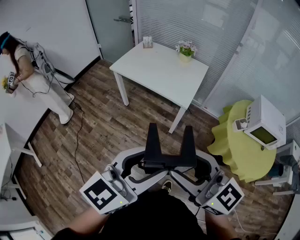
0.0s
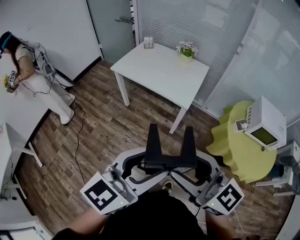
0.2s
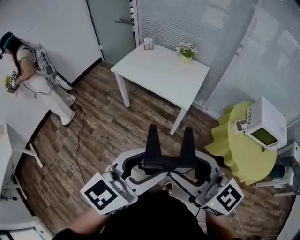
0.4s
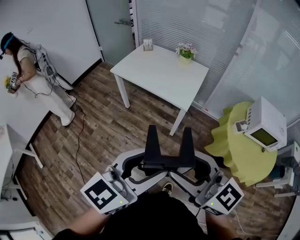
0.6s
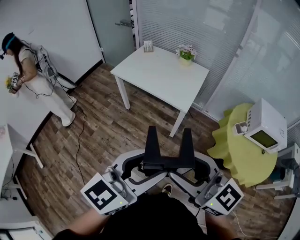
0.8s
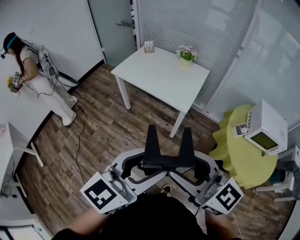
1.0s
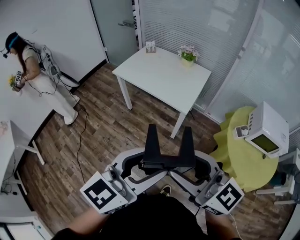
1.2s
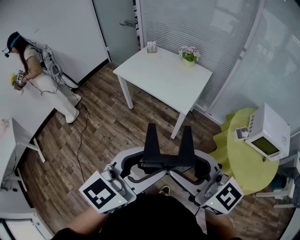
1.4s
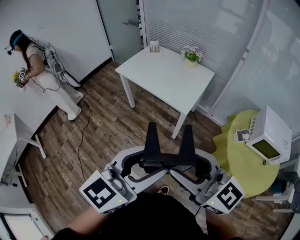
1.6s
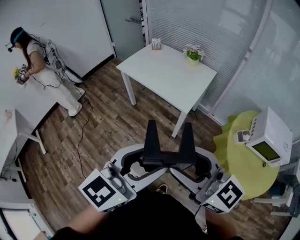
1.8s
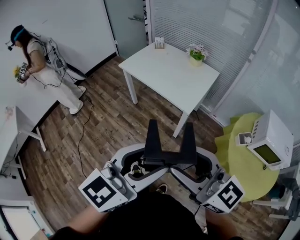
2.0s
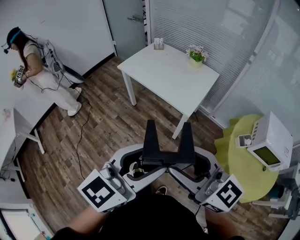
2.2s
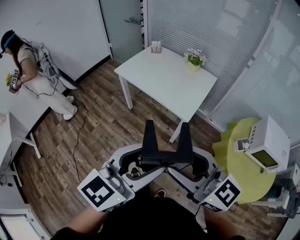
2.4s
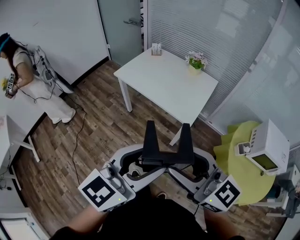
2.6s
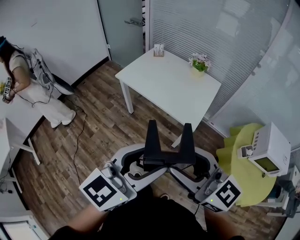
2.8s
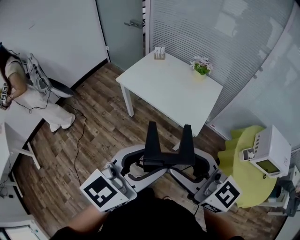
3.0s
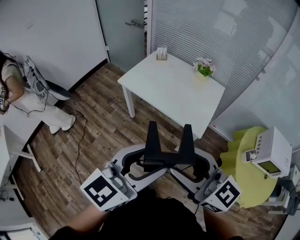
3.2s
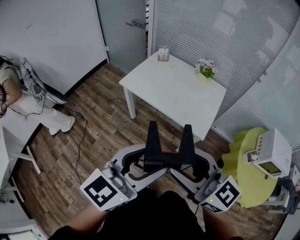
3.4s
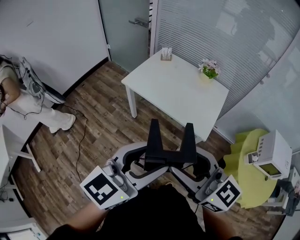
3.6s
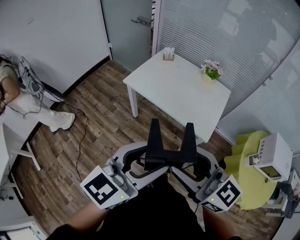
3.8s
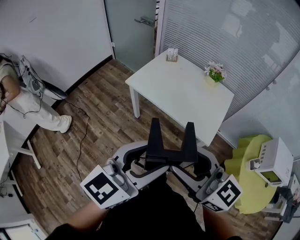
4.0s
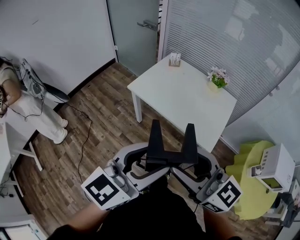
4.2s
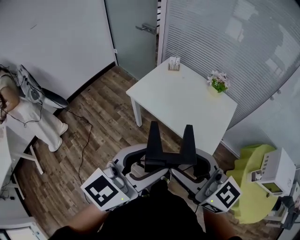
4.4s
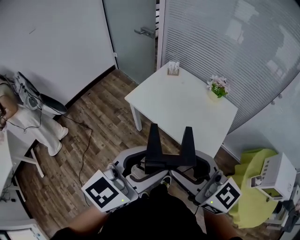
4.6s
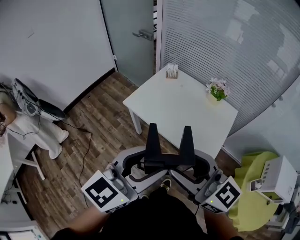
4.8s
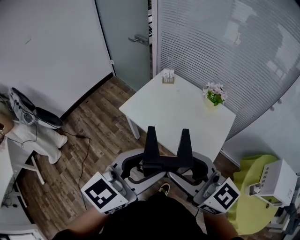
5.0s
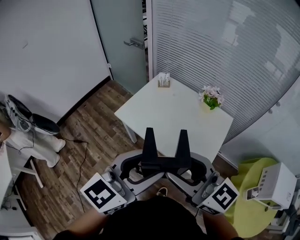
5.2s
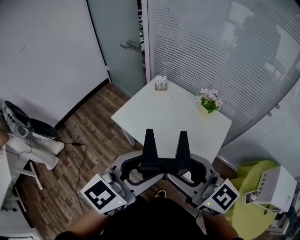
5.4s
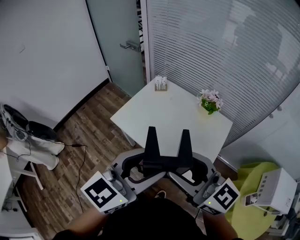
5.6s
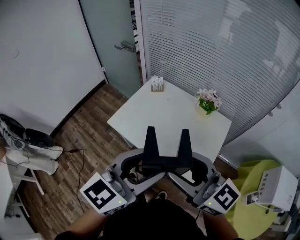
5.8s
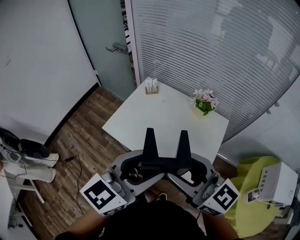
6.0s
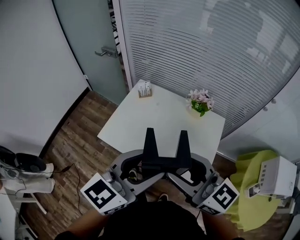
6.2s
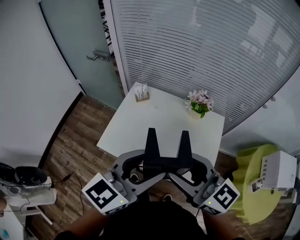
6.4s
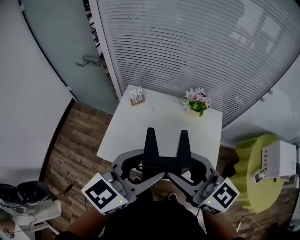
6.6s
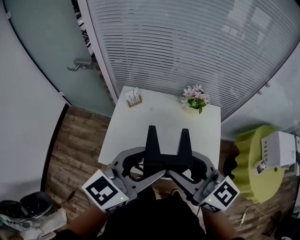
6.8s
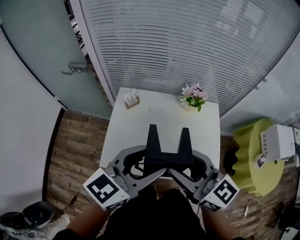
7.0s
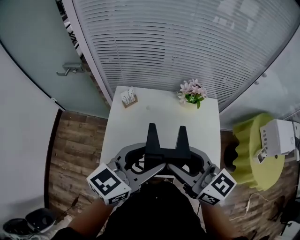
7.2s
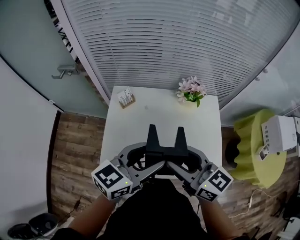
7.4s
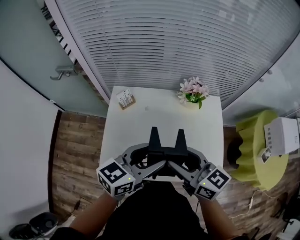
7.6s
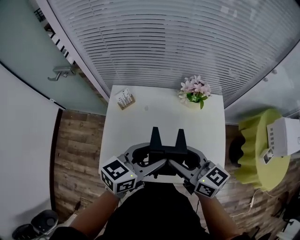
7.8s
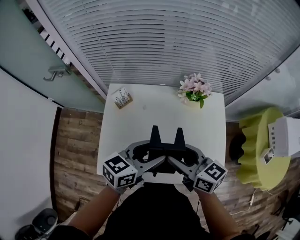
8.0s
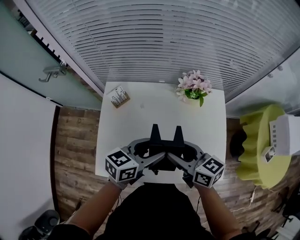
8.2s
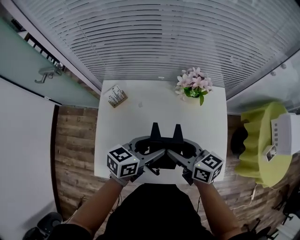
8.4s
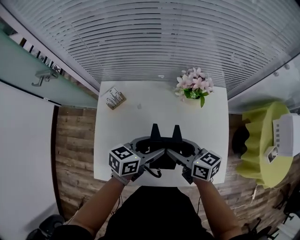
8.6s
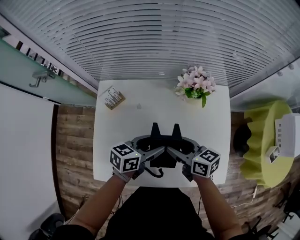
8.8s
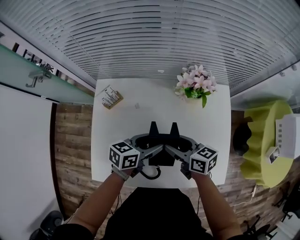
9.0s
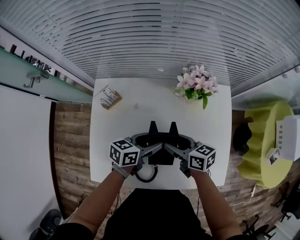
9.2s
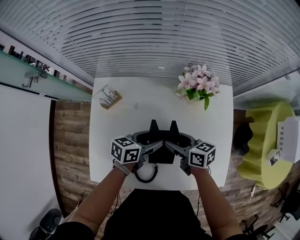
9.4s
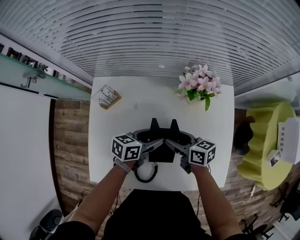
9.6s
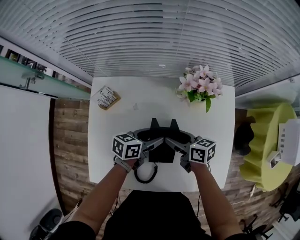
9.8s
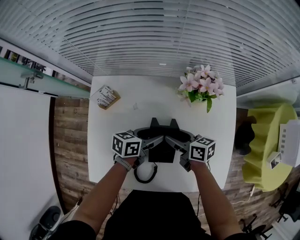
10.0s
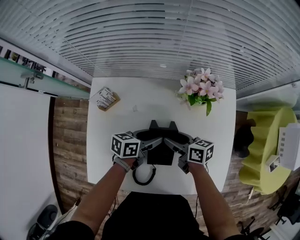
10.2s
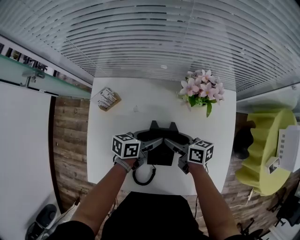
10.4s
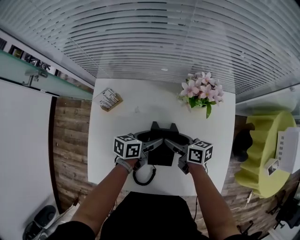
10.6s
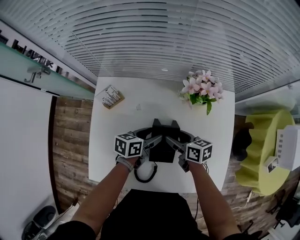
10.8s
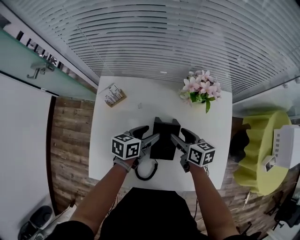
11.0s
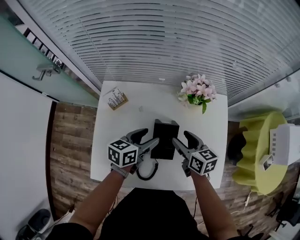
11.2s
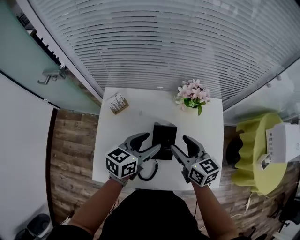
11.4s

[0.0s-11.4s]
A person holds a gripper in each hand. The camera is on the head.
0.0s to 1.4s: Both grippers travel together to the right, some 5 cm.
1.4s to 2.8s: Both grippers travel together forward and to the left, some 15 cm.
2.8s to 4.2s: Both grippers travel together forward and to the left, approximately 20 cm.
4.2s to 5.6s: The grippers both shift forward and to the right by some 25 cm.
5.6s to 7.2s: The right gripper moves roughly 25 cm, and rotates about 40 degrees. Meanwhile the left gripper moves some 30 cm, and changes its angle by about 40 degrees.
7.2s to 8.6s: The two grippers go some 30 cm downward and forward. The right gripper changes its angle by some 30 degrees, while the left gripper rotates roughly 30 degrees.
8.6s to 10.0s: The two grippers go some 15 cm downward and forward.
10.0s to 11.4s: Both grippers move upward, some 20 cm. The right gripper turns by approximately 30 degrees. Meanwhile the left gripper changes its angle by some 30 degrees.

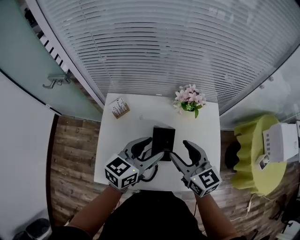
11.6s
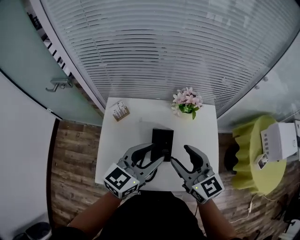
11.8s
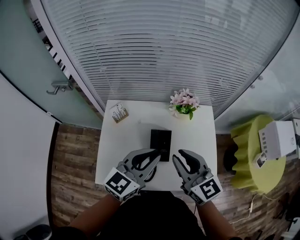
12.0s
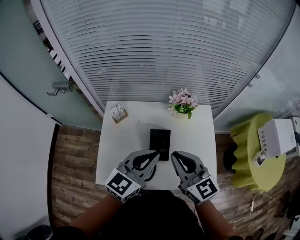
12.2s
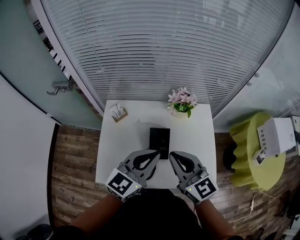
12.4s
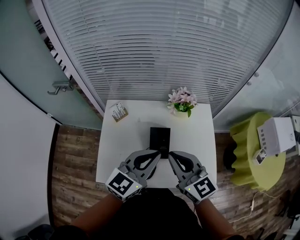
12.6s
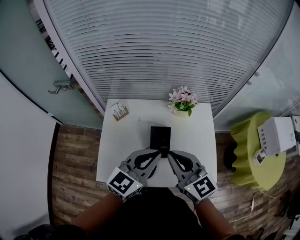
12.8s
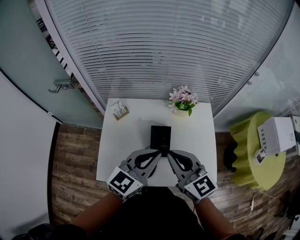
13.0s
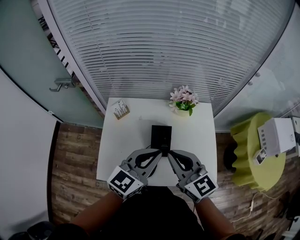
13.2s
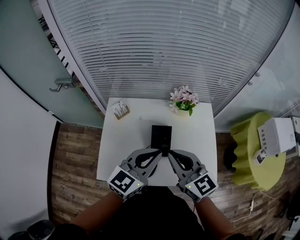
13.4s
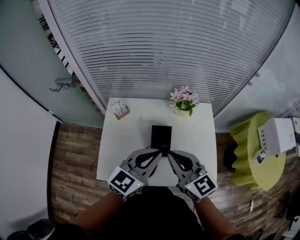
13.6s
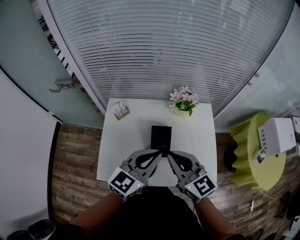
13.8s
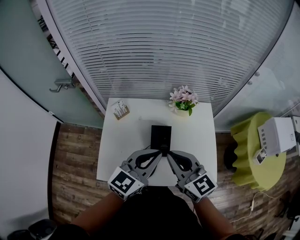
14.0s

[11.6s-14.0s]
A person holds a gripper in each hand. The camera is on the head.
11.6s to 12.8s: Both grippers travel together backward and upward, about 10 cm. The right gripper closes its fingers. The left gripper closes.
12.8s to 14.0s: Both grippers stay put.

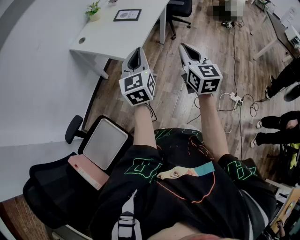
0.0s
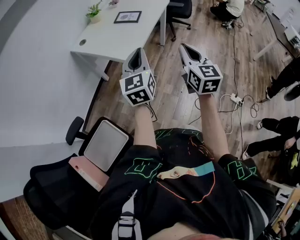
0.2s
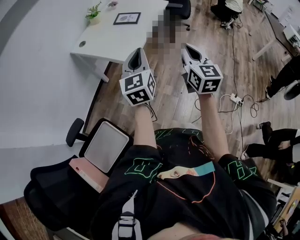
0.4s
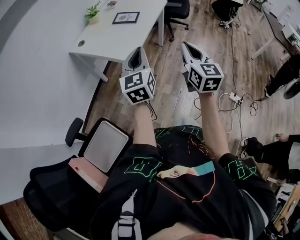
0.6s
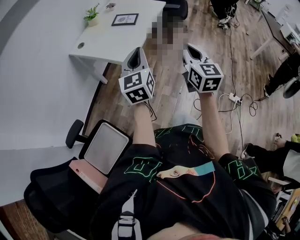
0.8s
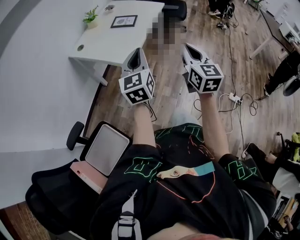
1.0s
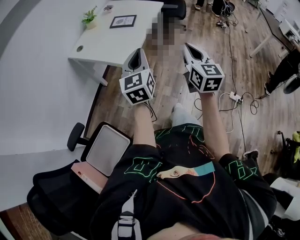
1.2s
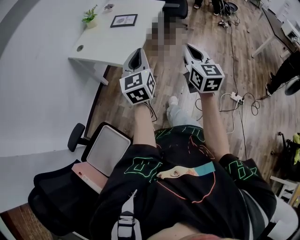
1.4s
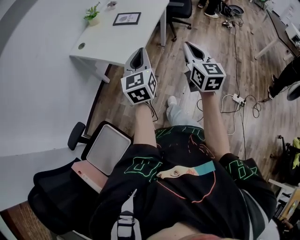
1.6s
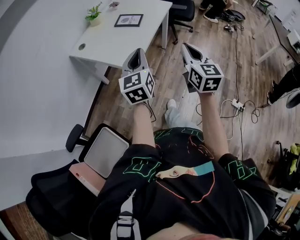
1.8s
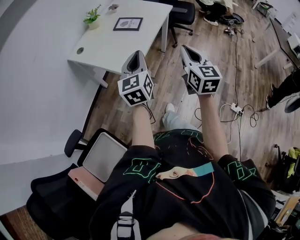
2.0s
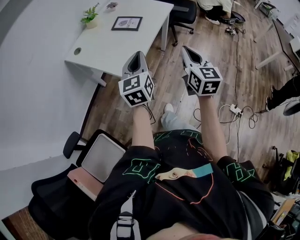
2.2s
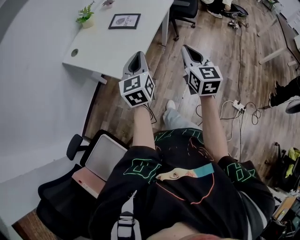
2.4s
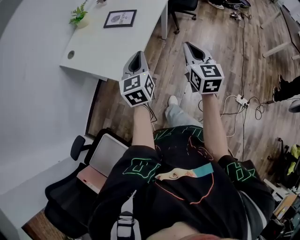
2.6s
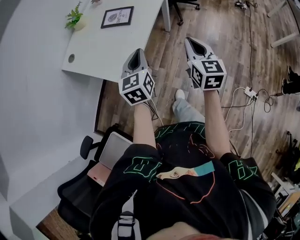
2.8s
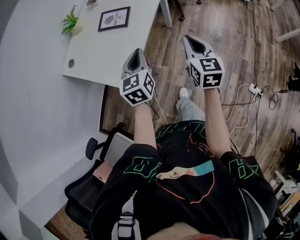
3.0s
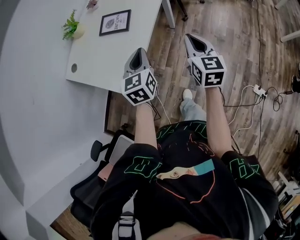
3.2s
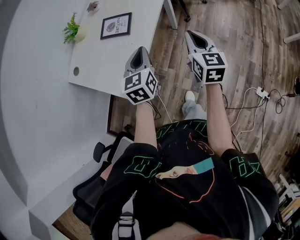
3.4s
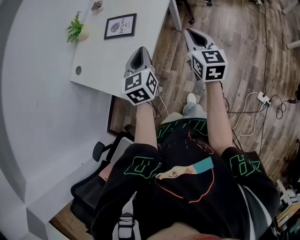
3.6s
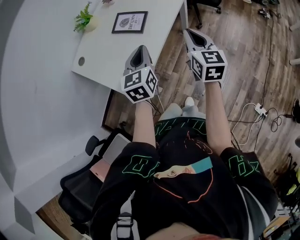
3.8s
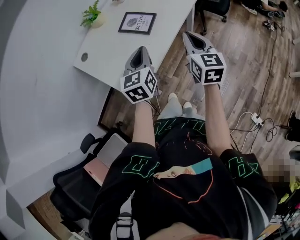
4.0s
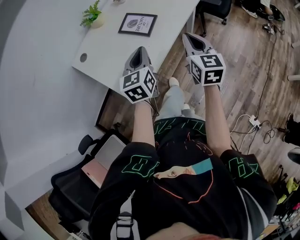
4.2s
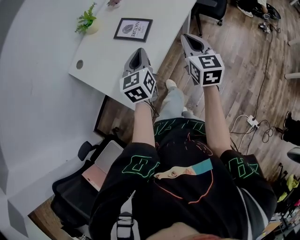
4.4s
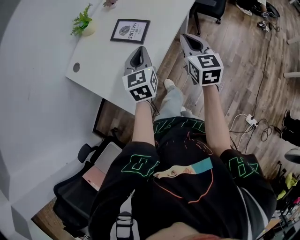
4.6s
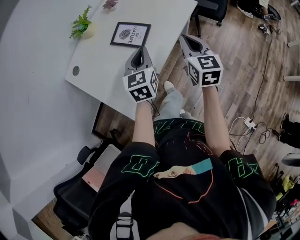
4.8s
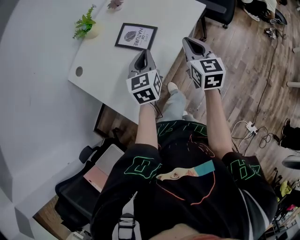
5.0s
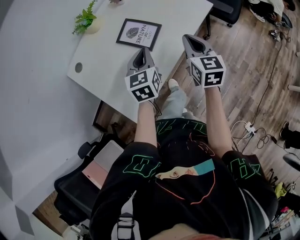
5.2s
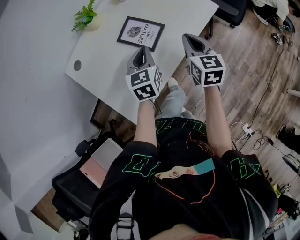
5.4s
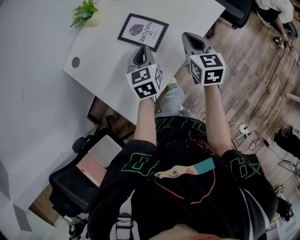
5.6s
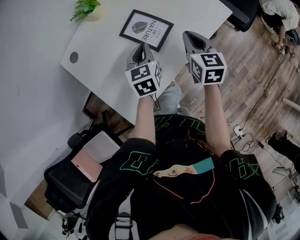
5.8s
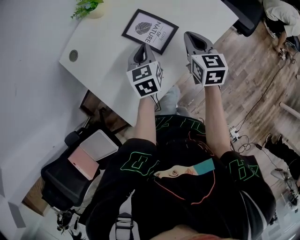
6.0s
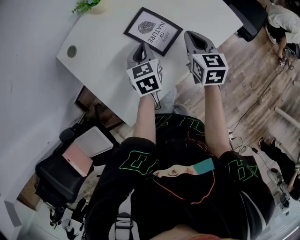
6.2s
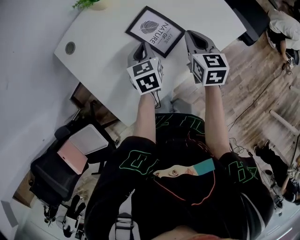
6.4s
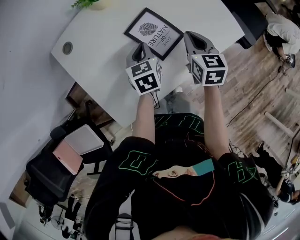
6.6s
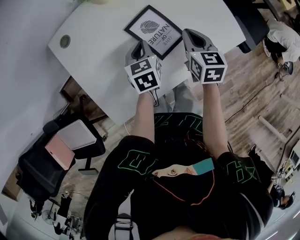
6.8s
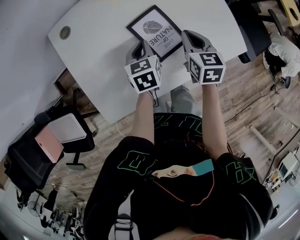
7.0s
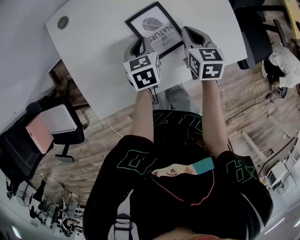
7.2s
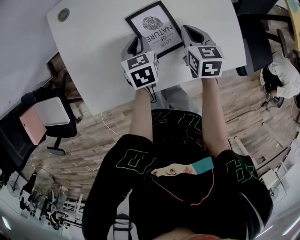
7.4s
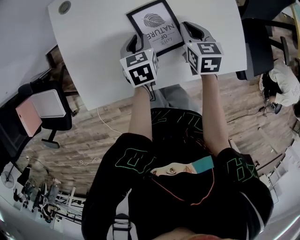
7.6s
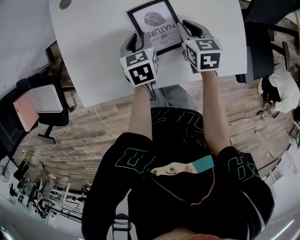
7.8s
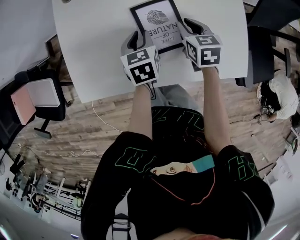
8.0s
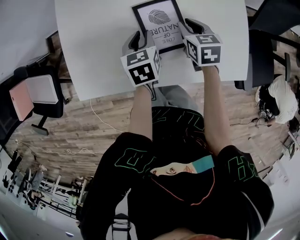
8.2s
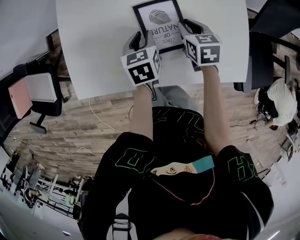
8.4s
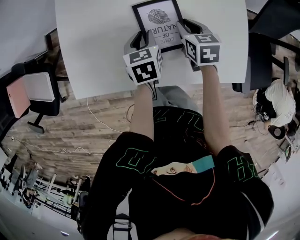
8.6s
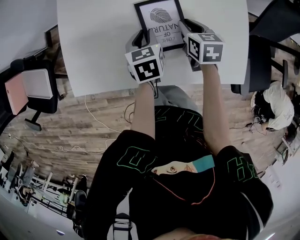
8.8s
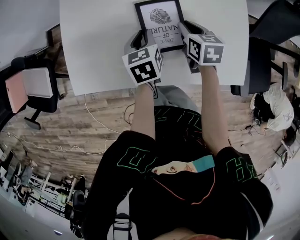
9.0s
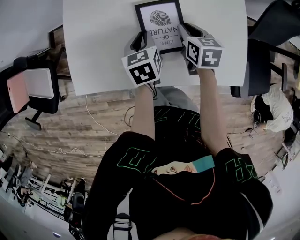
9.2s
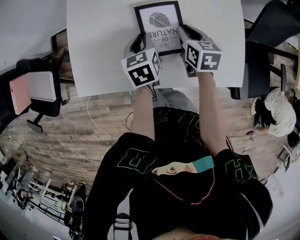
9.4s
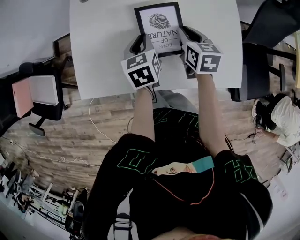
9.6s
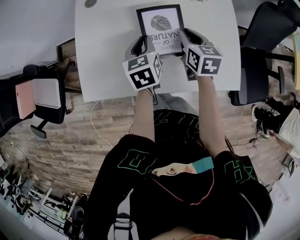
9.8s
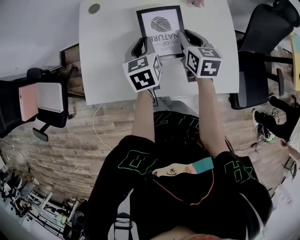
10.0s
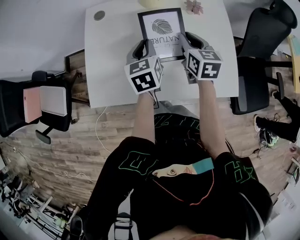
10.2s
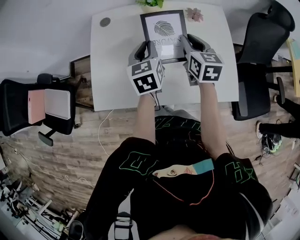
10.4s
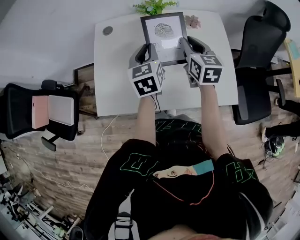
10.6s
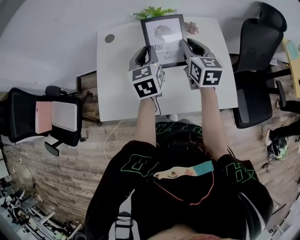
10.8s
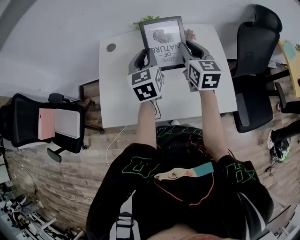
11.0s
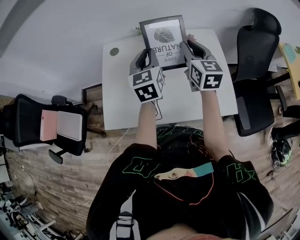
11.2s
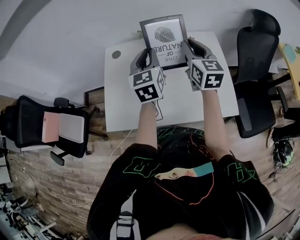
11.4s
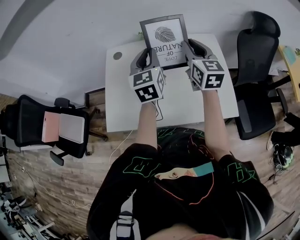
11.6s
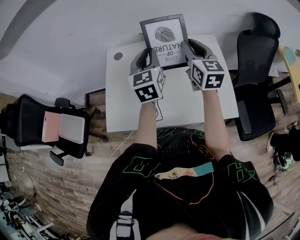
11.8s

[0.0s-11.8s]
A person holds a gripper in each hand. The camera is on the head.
0.0s to 1.4s: There are only small adjustments of the grippers.
1.4s to 3.0s: Both grippers move forward and downward, some 30 cm.
3.0s to 4.4s: Both grippers move forward, roughly 15 cm.
4.4s to 6.0s: The two grippers go roughly 20 cm forward and downward. The left gripper swivels roughly 20 degrees.
6.0s to 7.4s: The left gripper heads downward, covering about 5 cm, and rotates approximately 30 degrees, while the right gripper changes place by about 15 cm, and turns by approximately 30 degrees.
7.4s to 8.8s: The right gripper shifts some 5 cm downward.
8.8s to 10.4s: The grippers both shift upward by roughly 20 cm. The left gripper swivels about 20 degrees, while the right gripper turns by some 20 degrees.
10.4s to 11.8s: Both grippers move upward, approximately 15 cm.
